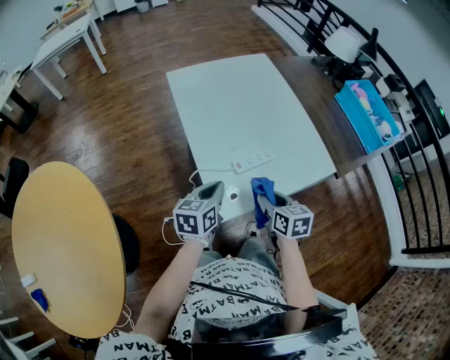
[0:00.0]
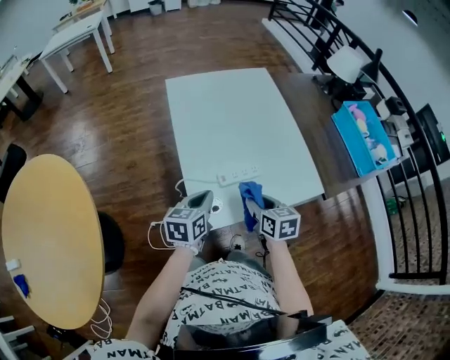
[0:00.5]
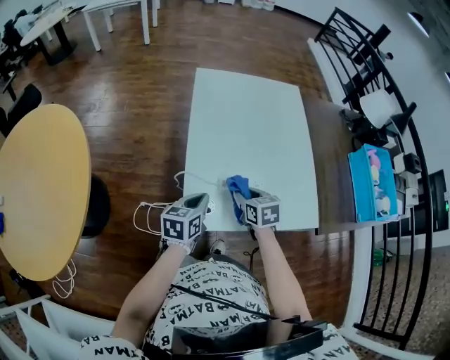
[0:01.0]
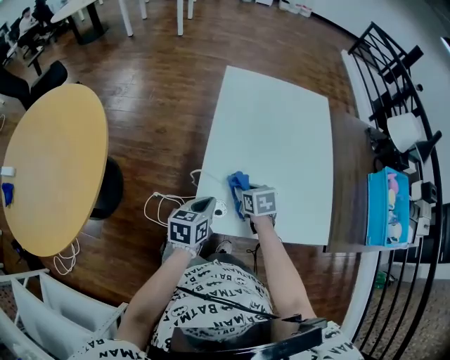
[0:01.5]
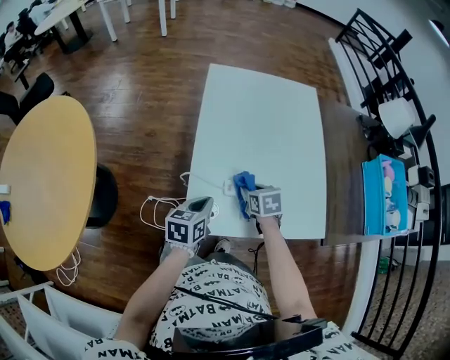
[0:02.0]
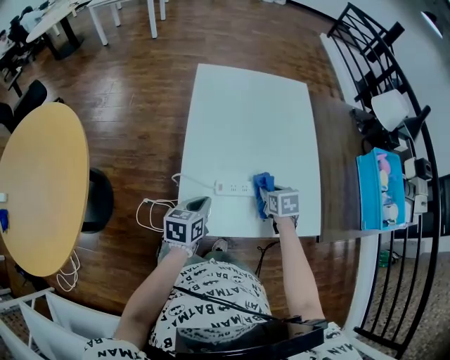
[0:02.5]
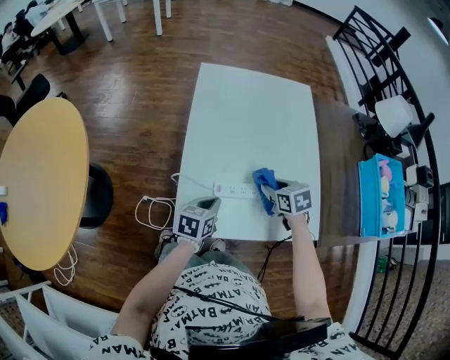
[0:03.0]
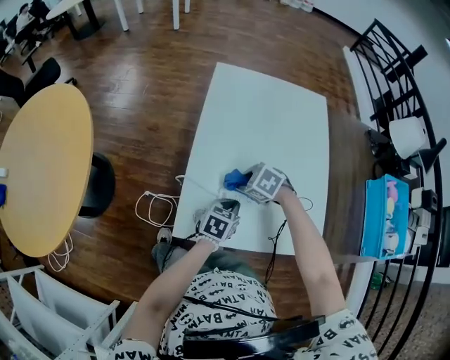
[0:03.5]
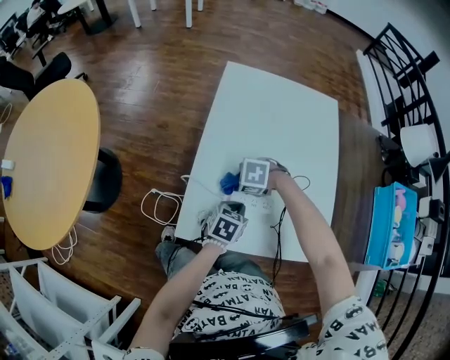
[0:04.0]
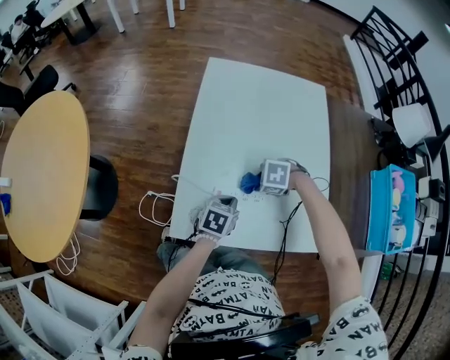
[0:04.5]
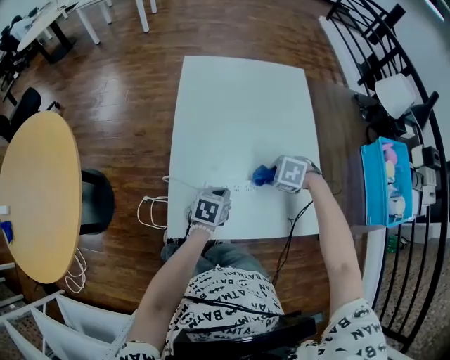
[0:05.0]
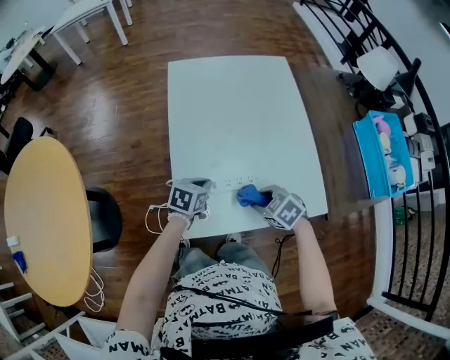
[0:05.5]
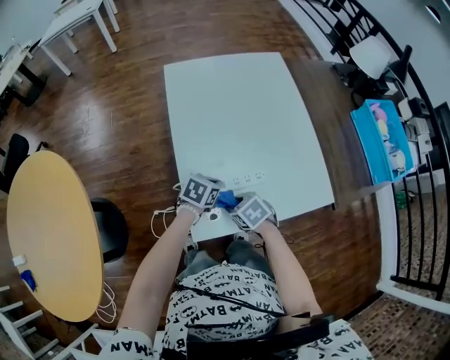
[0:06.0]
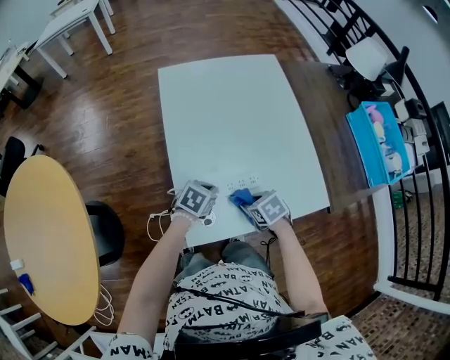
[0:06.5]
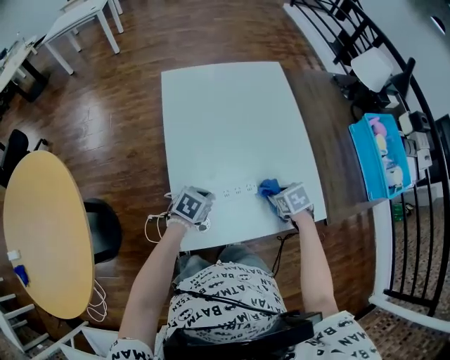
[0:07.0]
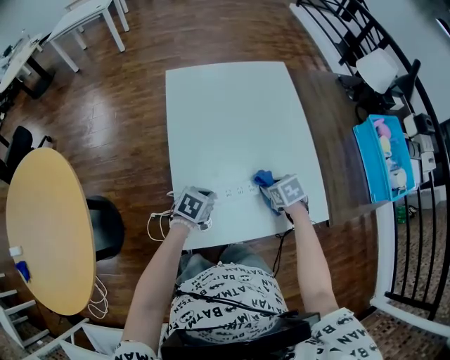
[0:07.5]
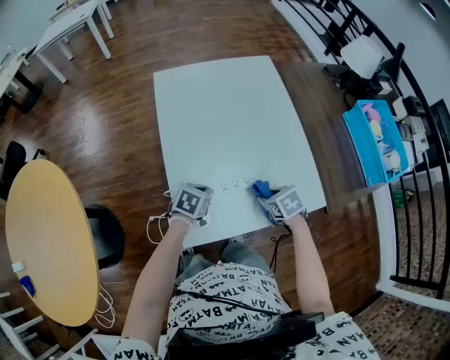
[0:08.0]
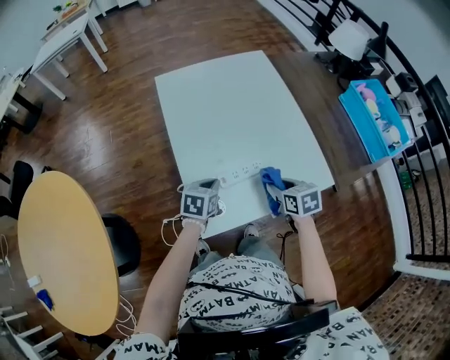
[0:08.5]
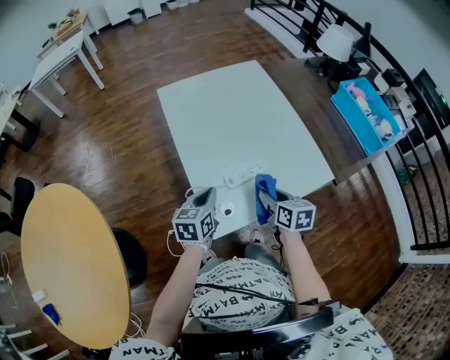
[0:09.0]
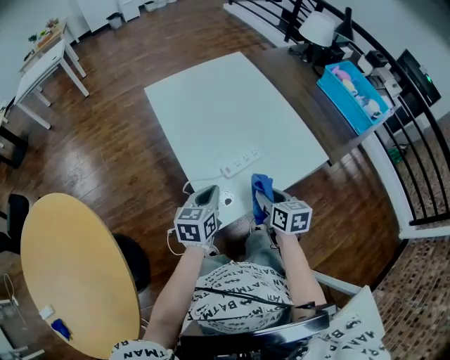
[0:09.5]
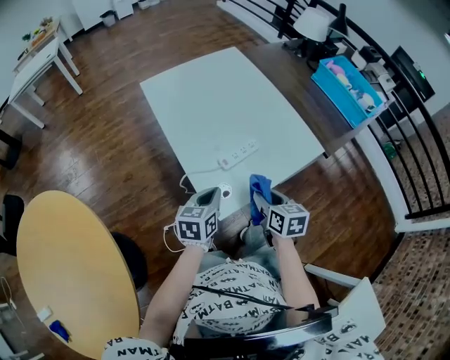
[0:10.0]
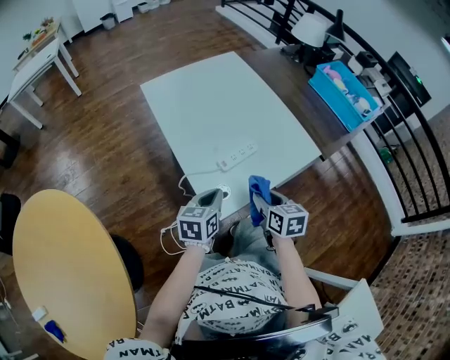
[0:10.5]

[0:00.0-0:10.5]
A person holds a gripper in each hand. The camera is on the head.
0:00.0 to 0:02.0: The right gripper ends up about 15 cm from where it was, and rotates roughly 30 degrees. Meanwhile the left gripper moves downward, some 5 cm, and swivels approximately 20 degrees.
0:02.0 to 0:04.0: The right gripper twists some 70 degrees counterclockwise, seen from behind. The left gripper shifts by approximately 15 cm.
0:04.0 to 0:06.5: The right gripper ends up about 15 cm from where it was, and rotates around the line of its fingers by some 70 degrees, clockwise from behind. The left gripper shifts by about 5 cm, and turns by about 30 degrees.
0:06.5 to 0:08.5: The right gripper is displaced upward and to the right by some 10 cm, and changes its angle by some 30 degrees.
0:08.5 to 0:10.5: The right gripper heads backward and to the left, covering roughly 15 cm, and swivels about 30 degrees. The left gripper moves backward and upward, roughly 15 cm.

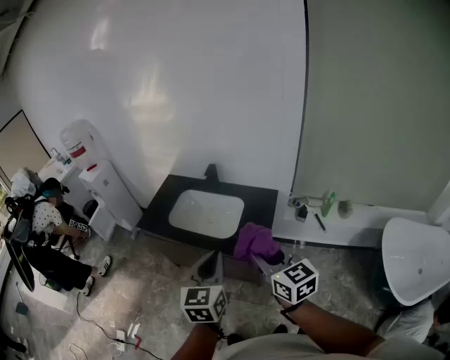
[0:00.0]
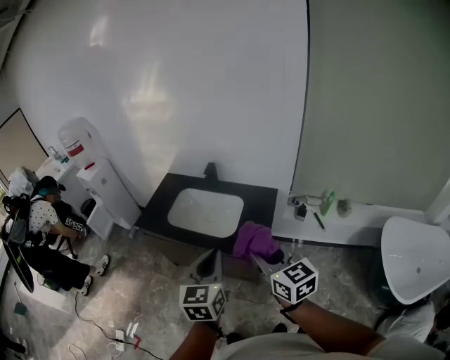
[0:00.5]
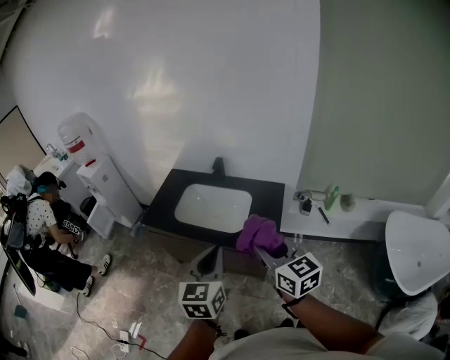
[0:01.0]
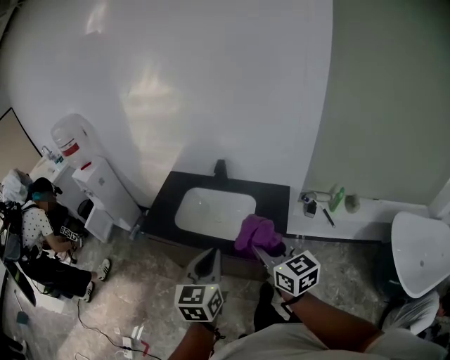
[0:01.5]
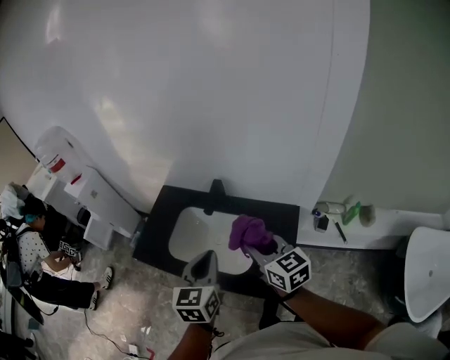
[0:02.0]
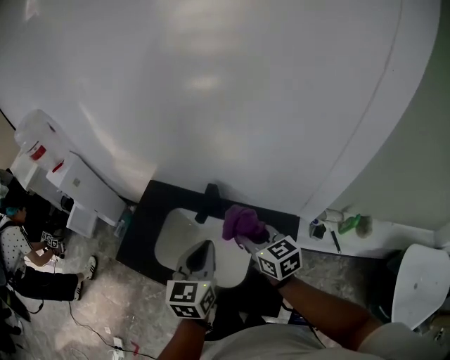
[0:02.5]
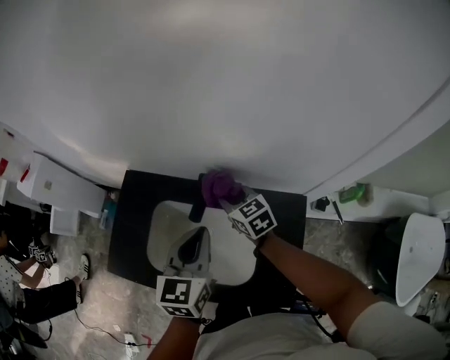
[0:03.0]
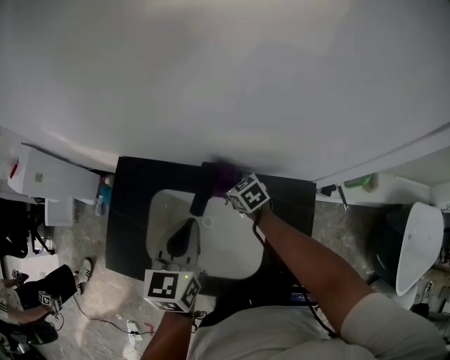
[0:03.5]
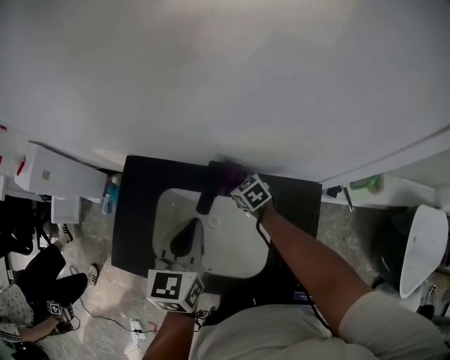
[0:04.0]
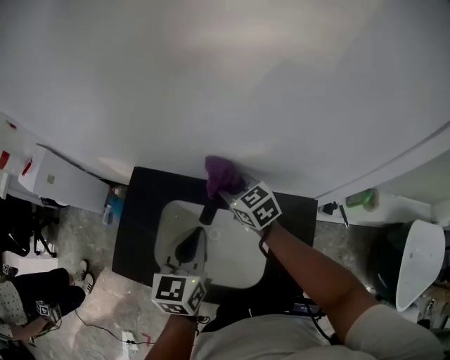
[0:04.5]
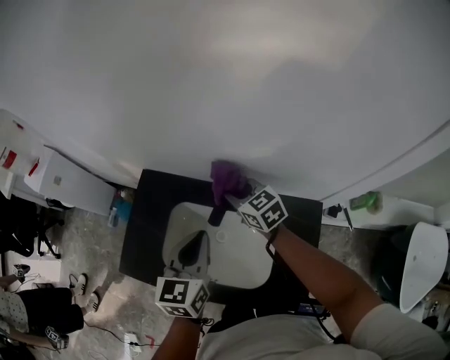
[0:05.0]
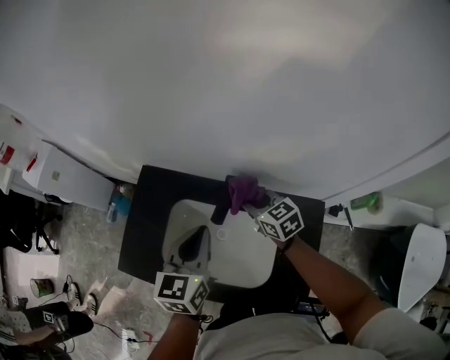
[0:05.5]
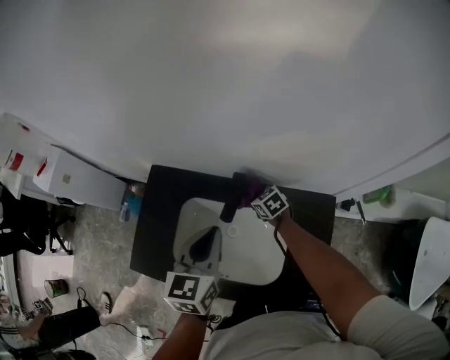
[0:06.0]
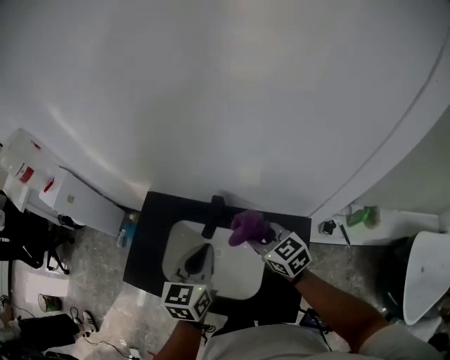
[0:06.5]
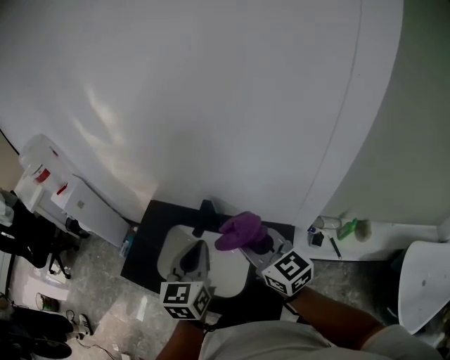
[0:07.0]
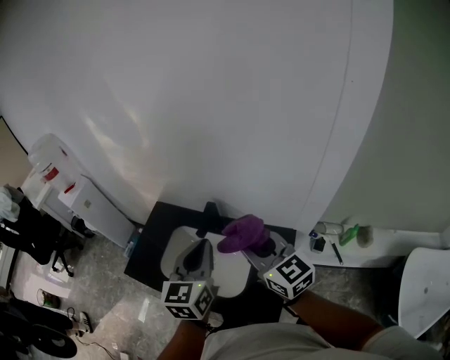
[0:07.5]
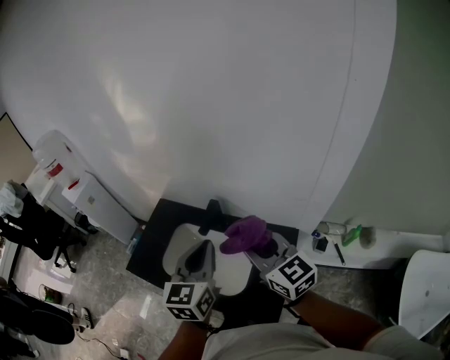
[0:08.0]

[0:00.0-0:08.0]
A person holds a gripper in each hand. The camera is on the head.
0:00.0 to 0:02.0: The grippers both shift forward by some 35 cm.
0:02.0 to 0:04.0: The left gripper travels forward and downward by roughly 30 cm. The right gripper travels forward and downward by roughly 50 cm, and angles its fingers downward, by about 30 degrees.
0:04.0 to 0:06.0: The right gripper goes upward and returns, some 20 cm each way.
0:06.0 to 0:08.0: The right gripper travels upward and backward by about 50 cm, and tips its fingers upward by about 40 degrees. Meanwhile the left gripper moves backward, upward and to the right, some 25 cm.

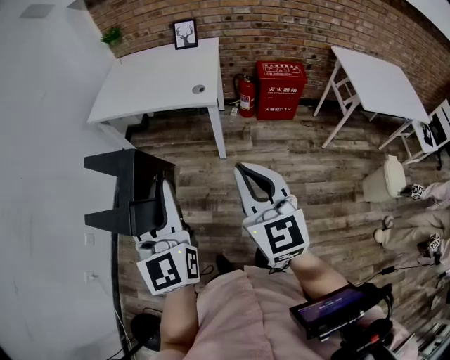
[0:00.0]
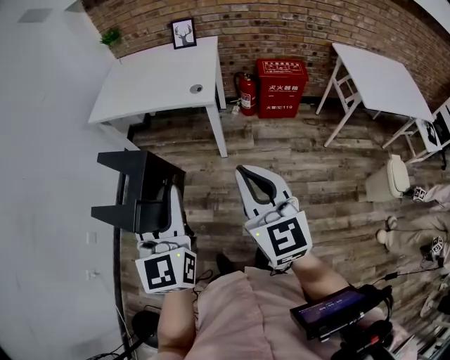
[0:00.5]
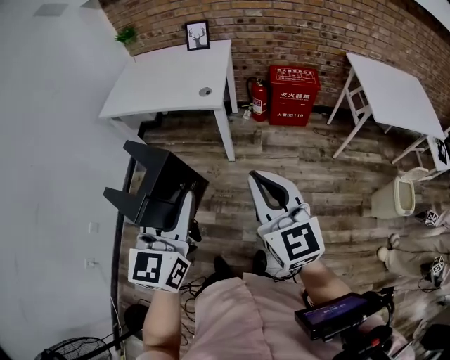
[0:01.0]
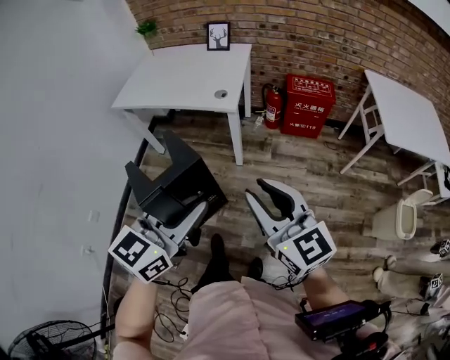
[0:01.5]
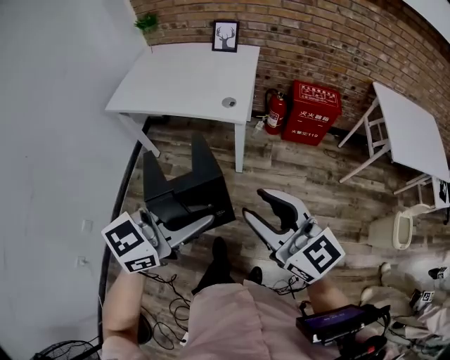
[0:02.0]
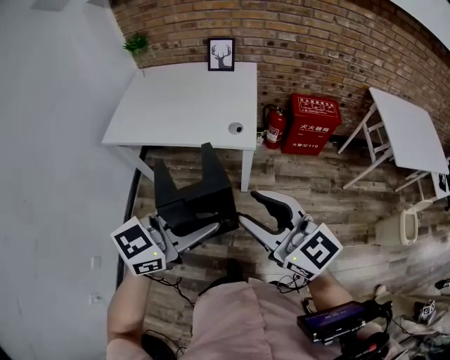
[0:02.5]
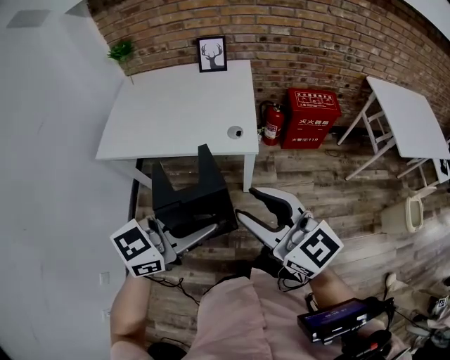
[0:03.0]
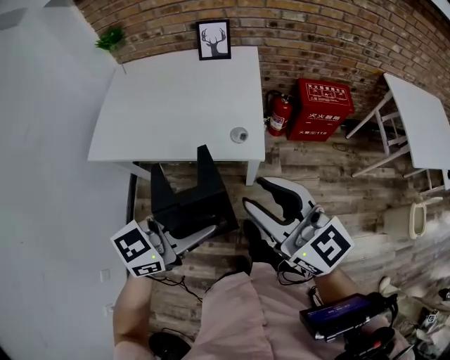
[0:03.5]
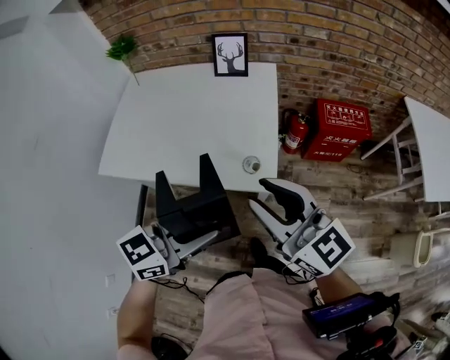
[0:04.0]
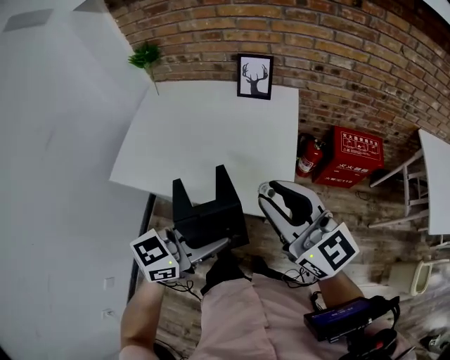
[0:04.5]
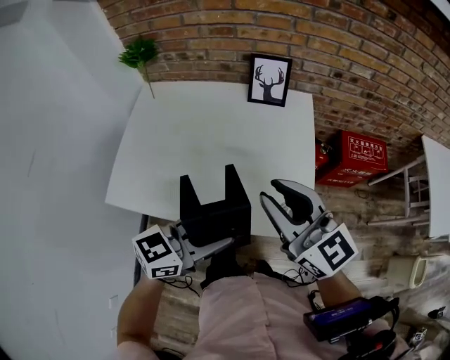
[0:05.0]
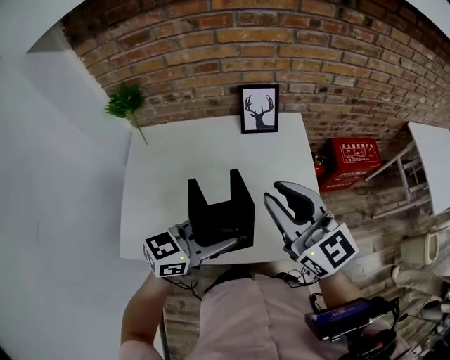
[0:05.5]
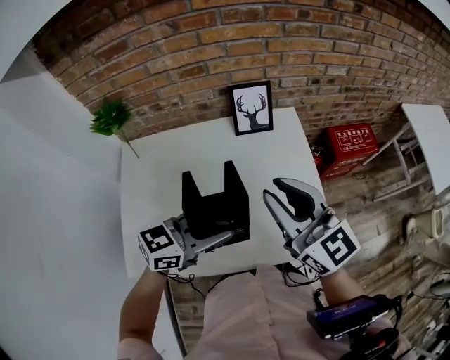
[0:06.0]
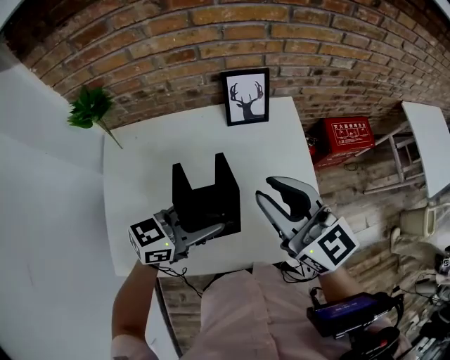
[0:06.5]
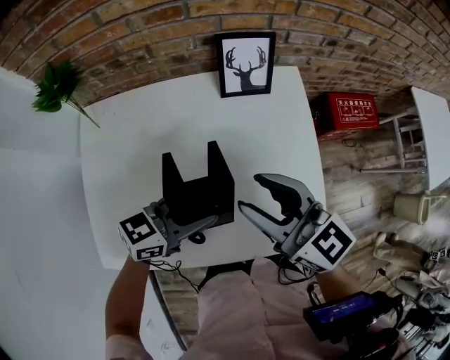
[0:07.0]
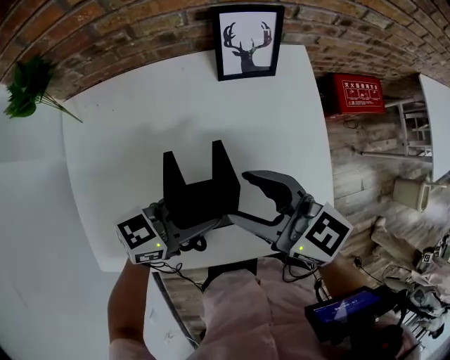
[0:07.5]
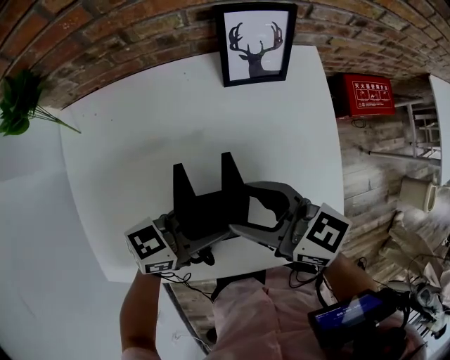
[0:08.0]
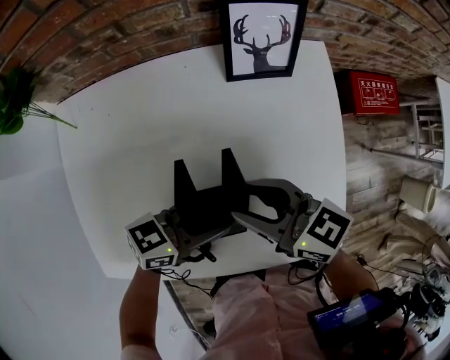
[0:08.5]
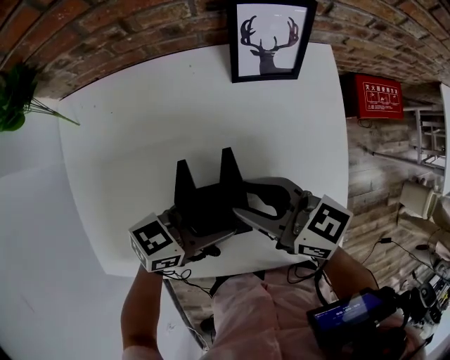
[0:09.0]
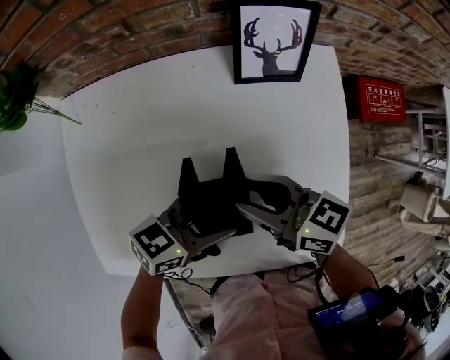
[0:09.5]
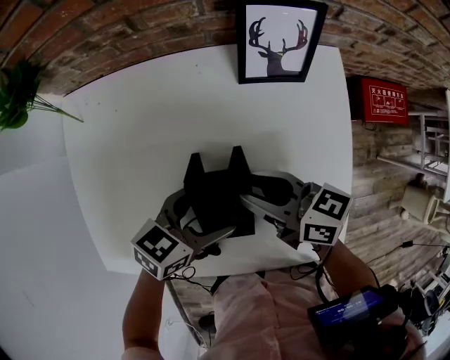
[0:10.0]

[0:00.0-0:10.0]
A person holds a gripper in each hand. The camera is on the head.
0:00.0 to 0:02.0: The right gripper travels forward by approximately 5 cm, goes to the right and returns, roughly 10 cm each way, turns by about 30 degrees, and opens; the left gripper heads to the right, forward and downward, covering about 10 cm, and turns by about 60 degrees.
0:02.0 to 0:04.0: The right gripper shifts approximately 35 cm forward, while the left gripper moves forward and to the left, some 35 cm.
0:04.0 to 0:06.0: Both grippers move forward and to the left, approximately 30 cm. The right gripper changes its angle by approximately 20 degrees. The left gripper changes its angle by some 20 degrees.
0:06.0 to 0:08.0: The grippers both shift downward by roughly 20 cm. The right gripper changes its angle by roughly 40 degrees, and opens its fingers.
0:08.0 to 0:10.0: The right gripper goes about 5 cm downward, and closes its fingers; the left gripper shifts by approximately 5 cm, turns by about 20 degrees, and opens up.
